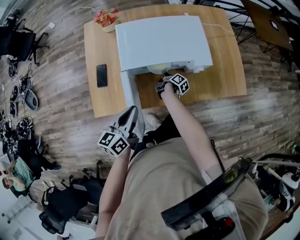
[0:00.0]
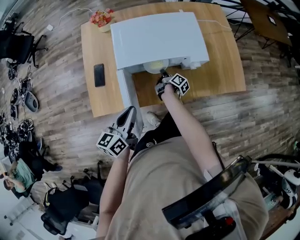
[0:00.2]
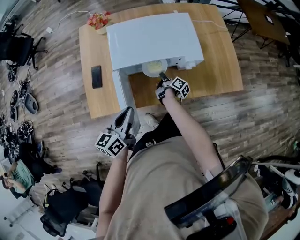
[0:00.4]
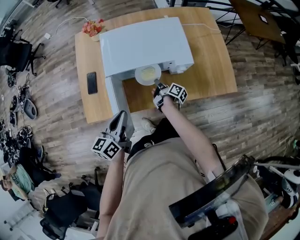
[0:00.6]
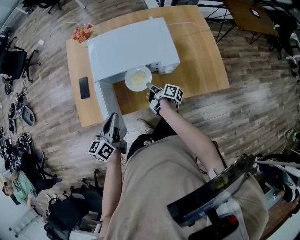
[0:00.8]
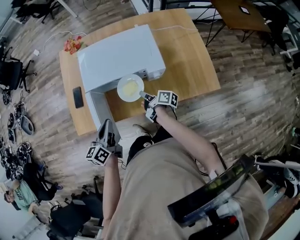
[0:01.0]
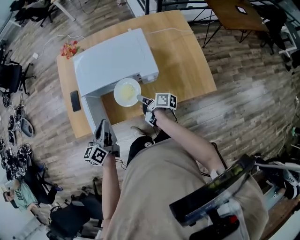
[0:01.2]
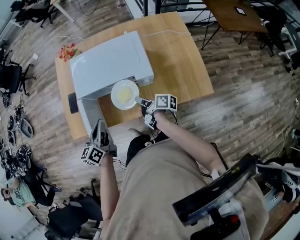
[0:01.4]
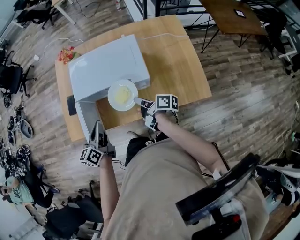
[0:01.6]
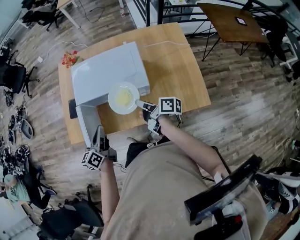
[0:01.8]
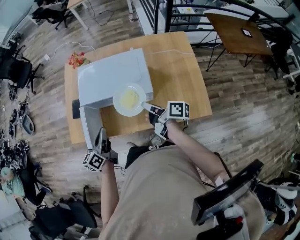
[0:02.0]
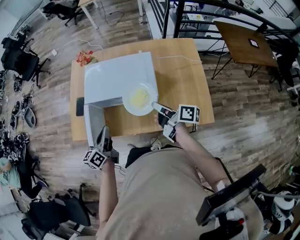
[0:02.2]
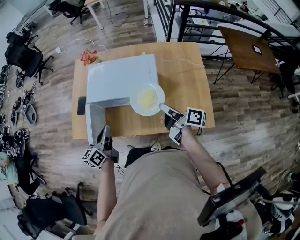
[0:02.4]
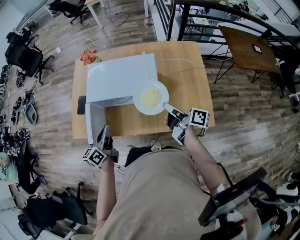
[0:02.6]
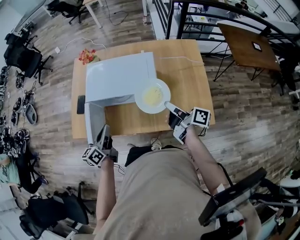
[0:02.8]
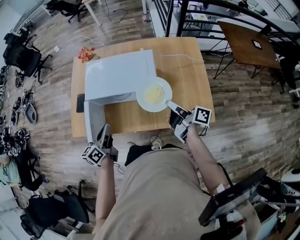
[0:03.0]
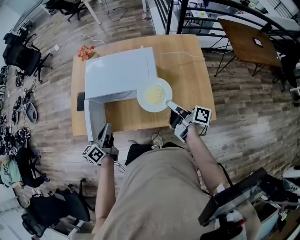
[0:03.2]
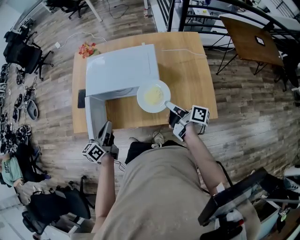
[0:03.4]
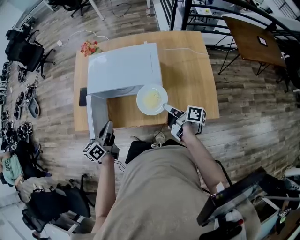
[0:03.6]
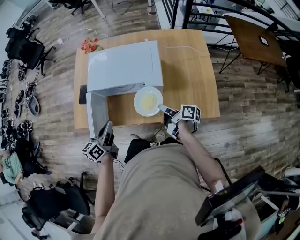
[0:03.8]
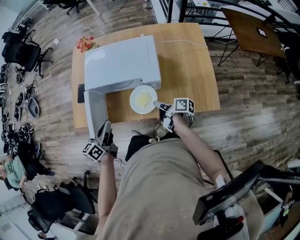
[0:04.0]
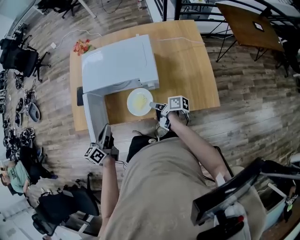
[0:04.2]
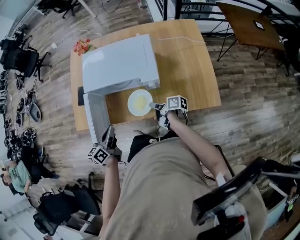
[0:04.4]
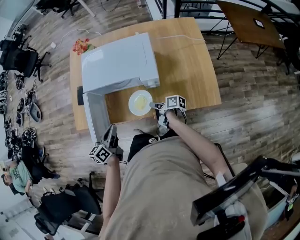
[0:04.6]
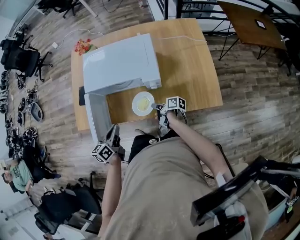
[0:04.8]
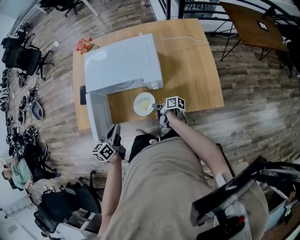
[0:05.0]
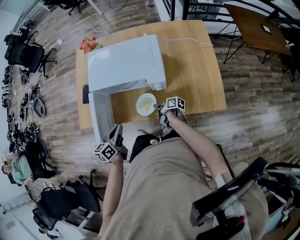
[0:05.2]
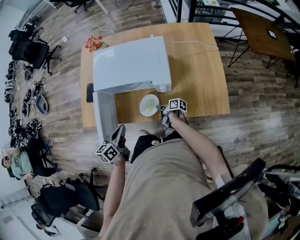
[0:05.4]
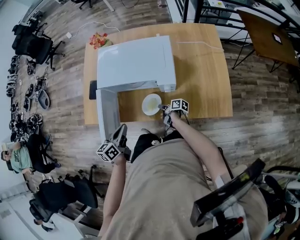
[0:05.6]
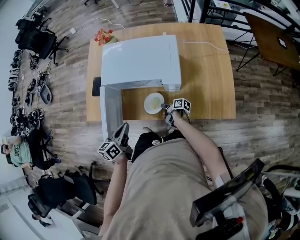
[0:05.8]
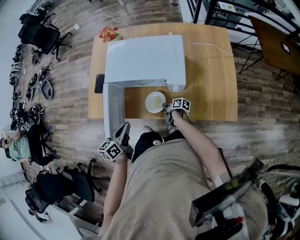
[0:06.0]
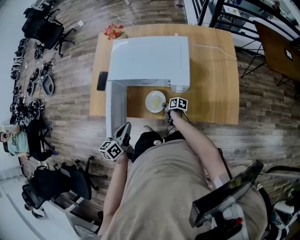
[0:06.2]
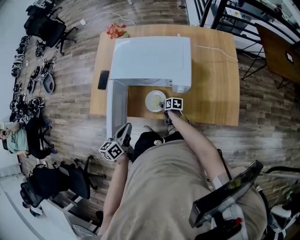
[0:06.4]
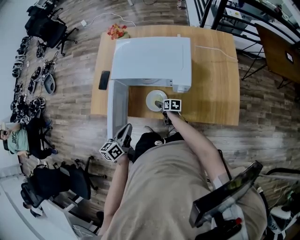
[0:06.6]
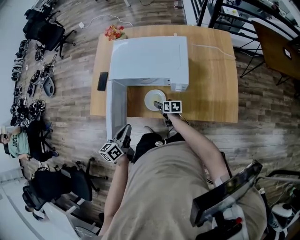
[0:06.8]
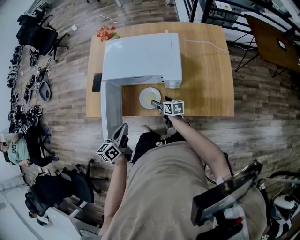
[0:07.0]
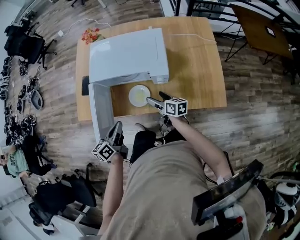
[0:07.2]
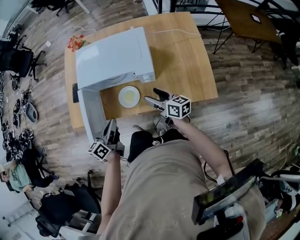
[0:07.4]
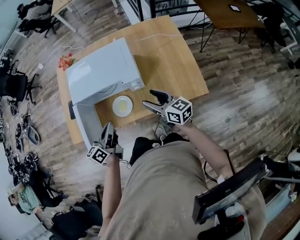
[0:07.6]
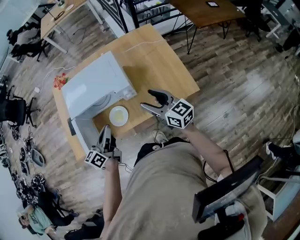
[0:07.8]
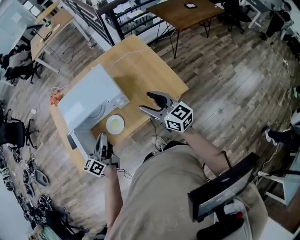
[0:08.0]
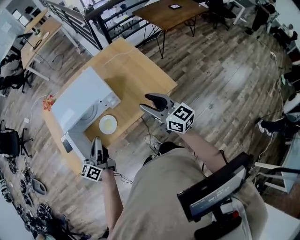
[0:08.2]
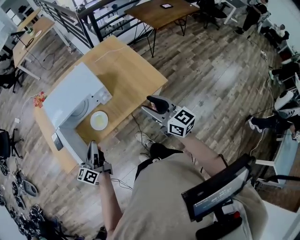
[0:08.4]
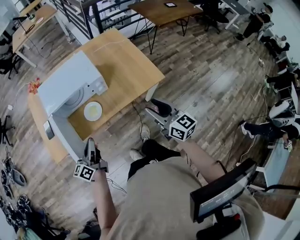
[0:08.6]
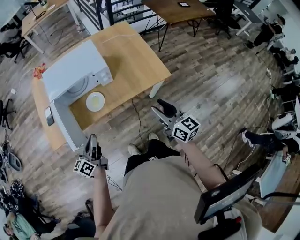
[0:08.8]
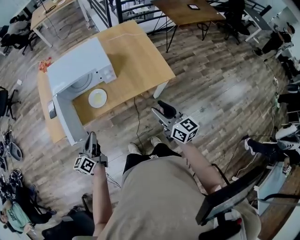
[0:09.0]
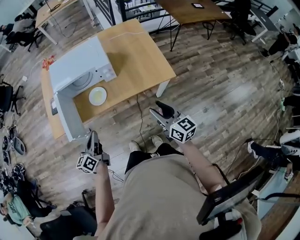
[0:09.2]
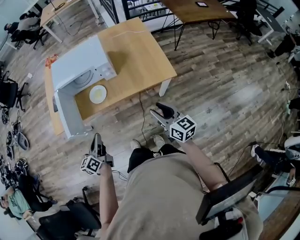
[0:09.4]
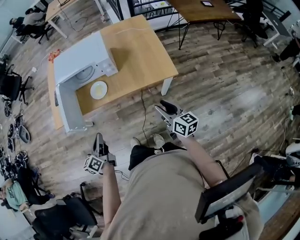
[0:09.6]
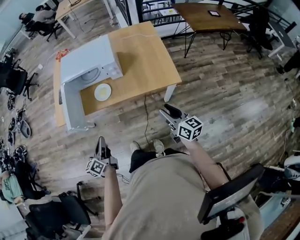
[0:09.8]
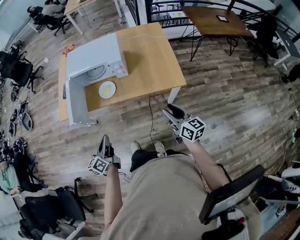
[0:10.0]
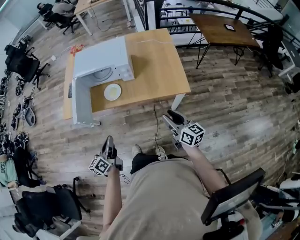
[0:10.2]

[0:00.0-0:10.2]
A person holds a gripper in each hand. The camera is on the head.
0:00.0 to 0:01.4: The left gripper shifts about 10 cm to the right. The right gripper shifts approximately 25 cm upward, to the right and backward, and turns by some 40 degrees.
0:01.4 to 0:03.0: The right gripper goes approximately 20 cm to the right and upward.
0:03.0 to 0:04.4: The left gripper shifts approximately 5 cm downward; the right gripper moves downward and to the left, about 20 cm, and swivels roughly 20 degrees.
0:04.4 to 0:05.8: The right gripper is displaced downward by about 15 cm.
0:05.8 to 0:07.2: The right gripper goes roughly 15 cm upward, swivels some 40 degrees, and opens up.
0:07.2 to 0:08.8: The left gripper moves approximately 15 cm, and changes its angle by about 20 degrees; the right gripper shifts by about 40 cm, rotates approximately 40 degrees, and closes up.
0:08.8 to 0:10.2: The right gripper is displaced to the right and downward by roughly 10 cm. Meanwhile the left gripper travels backward and to the right by roughly 15 cm, and changes its angle by roughly 20 degrees.

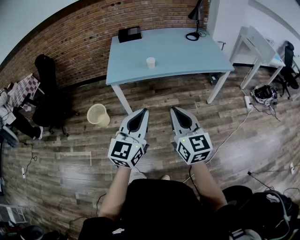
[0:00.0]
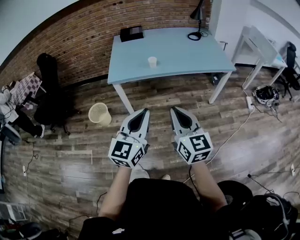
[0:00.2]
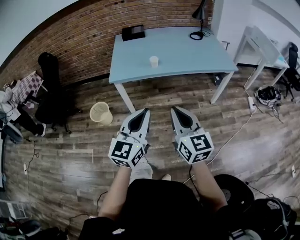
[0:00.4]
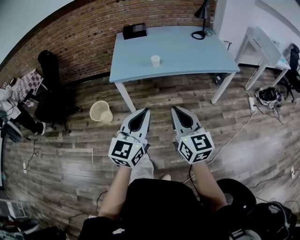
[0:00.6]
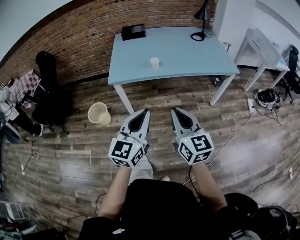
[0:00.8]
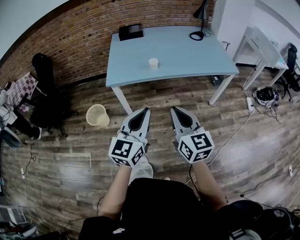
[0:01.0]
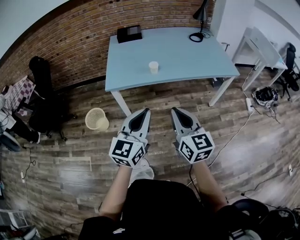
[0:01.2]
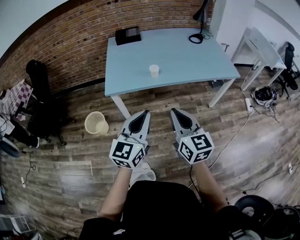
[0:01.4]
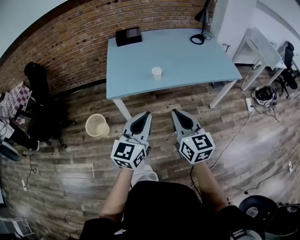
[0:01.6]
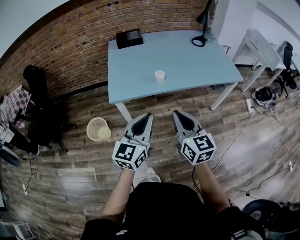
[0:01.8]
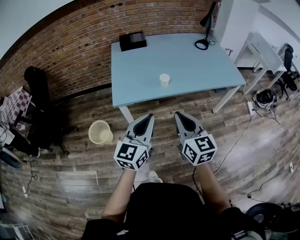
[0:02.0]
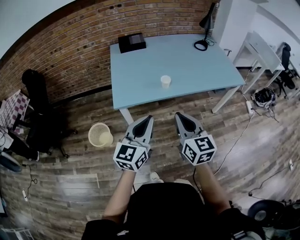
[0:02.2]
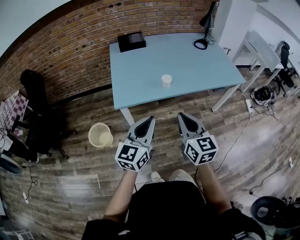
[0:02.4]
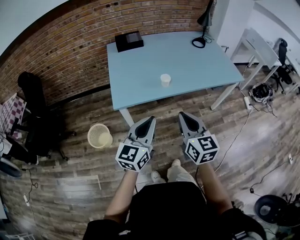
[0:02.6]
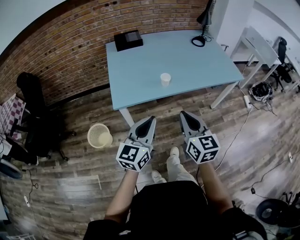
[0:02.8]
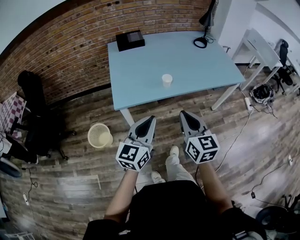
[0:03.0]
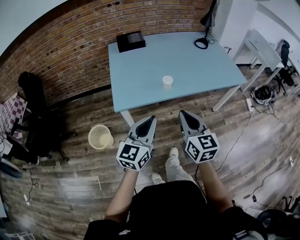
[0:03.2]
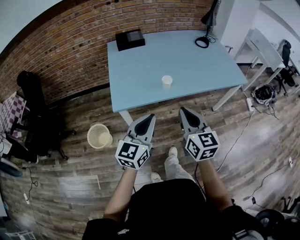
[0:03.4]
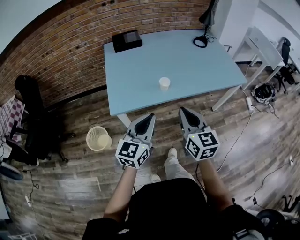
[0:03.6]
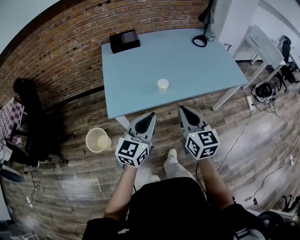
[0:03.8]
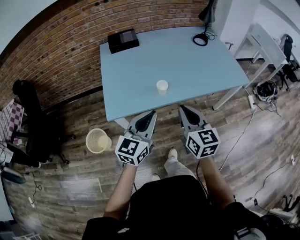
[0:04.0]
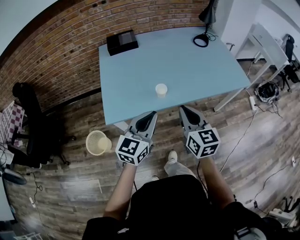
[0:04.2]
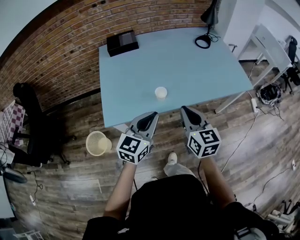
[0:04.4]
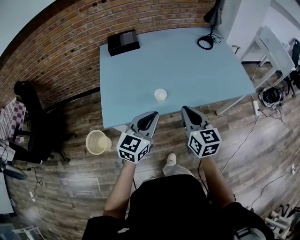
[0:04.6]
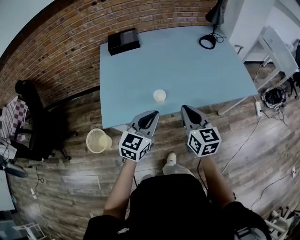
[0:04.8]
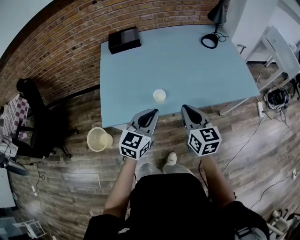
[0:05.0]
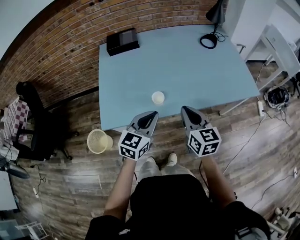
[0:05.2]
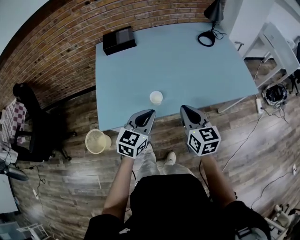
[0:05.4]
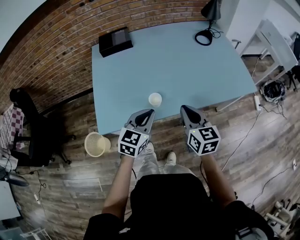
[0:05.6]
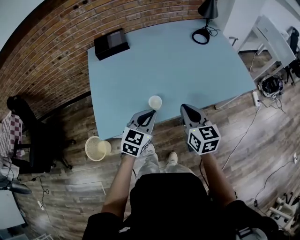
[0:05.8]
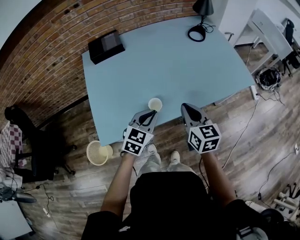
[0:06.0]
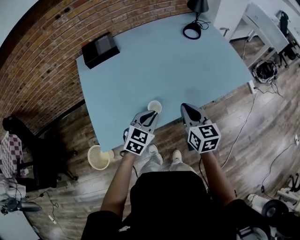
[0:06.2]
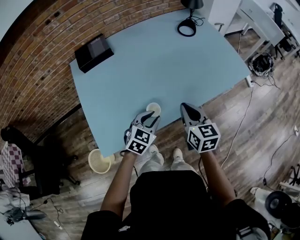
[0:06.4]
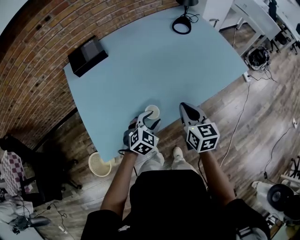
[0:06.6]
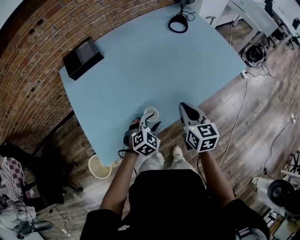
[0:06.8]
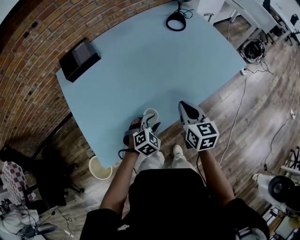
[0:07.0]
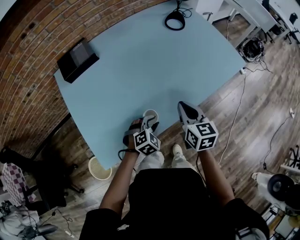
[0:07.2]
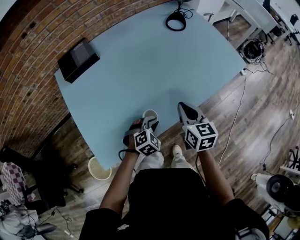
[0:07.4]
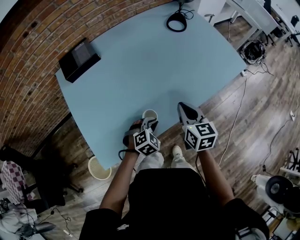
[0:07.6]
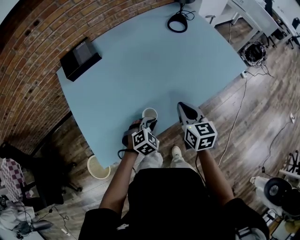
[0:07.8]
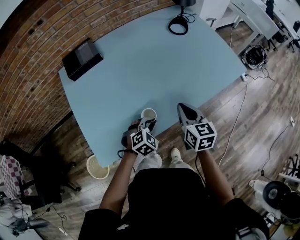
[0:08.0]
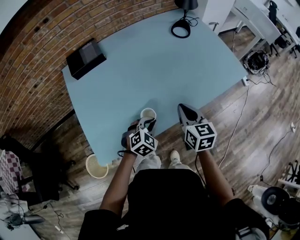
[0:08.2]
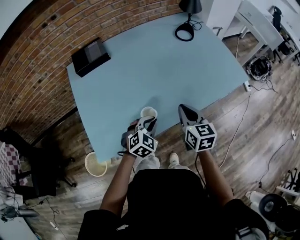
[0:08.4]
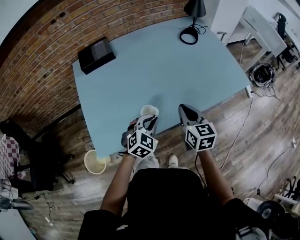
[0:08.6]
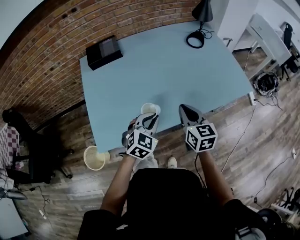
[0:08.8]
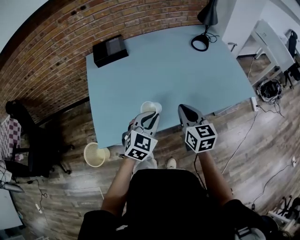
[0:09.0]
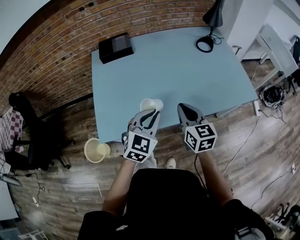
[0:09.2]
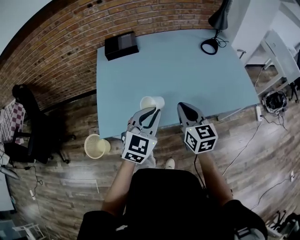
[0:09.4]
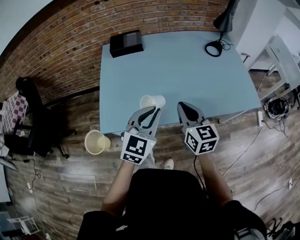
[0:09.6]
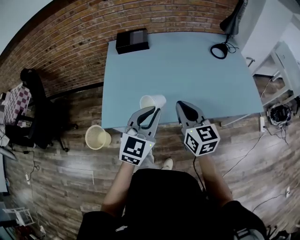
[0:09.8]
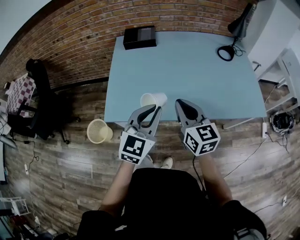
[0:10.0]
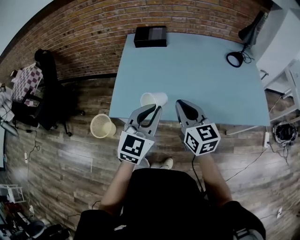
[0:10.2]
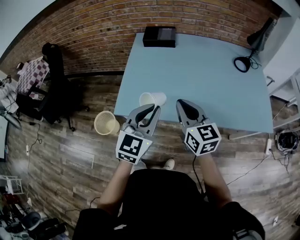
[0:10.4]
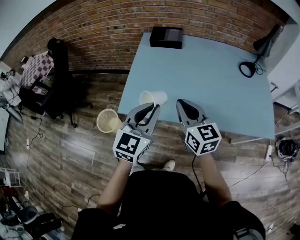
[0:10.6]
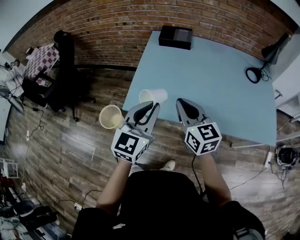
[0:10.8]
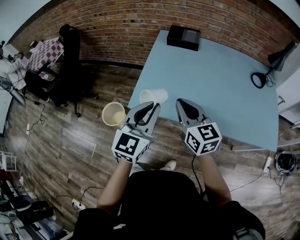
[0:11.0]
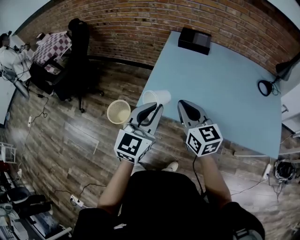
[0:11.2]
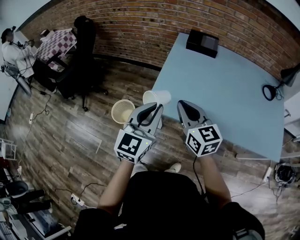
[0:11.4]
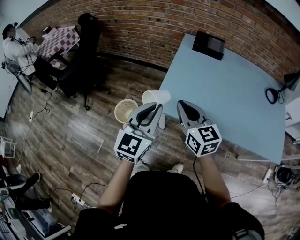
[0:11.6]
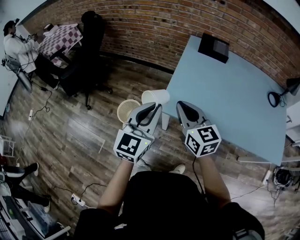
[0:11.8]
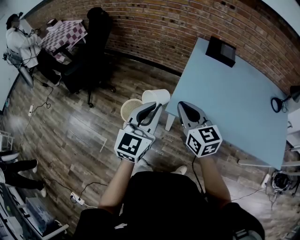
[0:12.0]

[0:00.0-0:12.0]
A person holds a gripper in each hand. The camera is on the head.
0:00.0 to 0:01.6: The grippers both shift forward and to the left by about 20 cm.
0:01.6 to 0:03.0: The two grippers go some 10 cm to the left and forward.
0:03.0 to 0:04.4: The grippers both shift forward by some 20 cm.
0:04.4 to 0:06.0: Both grippers travel together forward and downward, about 15 cm. The left gripper turns by approximately 20 degrees.
0:06.0 to 0:07.6: The left gripper is displaced downward by roughly 15 cm, rotates roughly 40 degrees, and opens, then closes once more, while the right gripper moves forward and downward, about 10 cm.
0:07.6 to 0:09.0: The left gripper is displaced upward by some 20 cm, and rotates about 40 degrees, while the right gripper shifts approximately 5 cm upward.
0:09.0 to 0:10.4: The right gripper ends up some 15 cm from where it was, and rotates some 30 degrees. Meanwhile the left gripper moves about 15 cm, and rotates some 30 degrees.
0:10.4 to 0:12.0: Both grippers move to the left, approximately 30 cm.

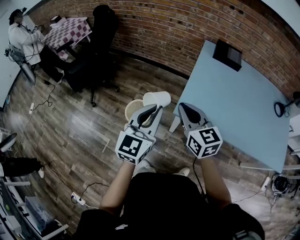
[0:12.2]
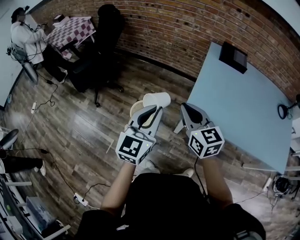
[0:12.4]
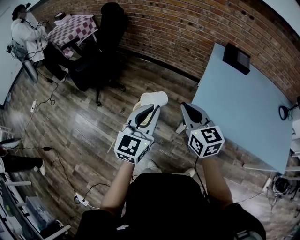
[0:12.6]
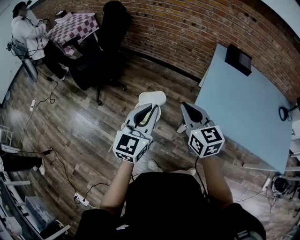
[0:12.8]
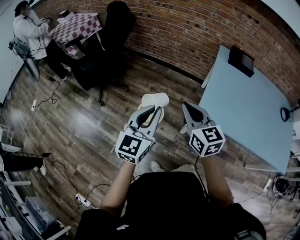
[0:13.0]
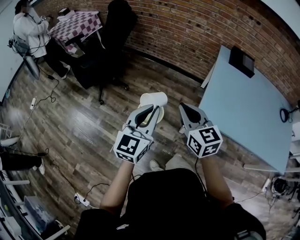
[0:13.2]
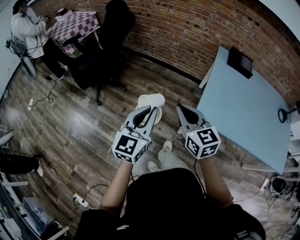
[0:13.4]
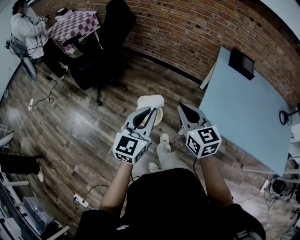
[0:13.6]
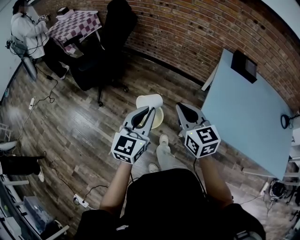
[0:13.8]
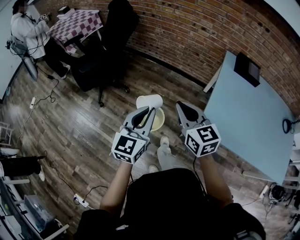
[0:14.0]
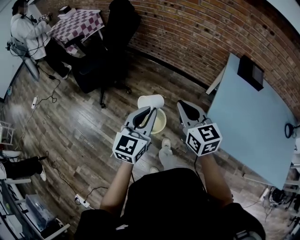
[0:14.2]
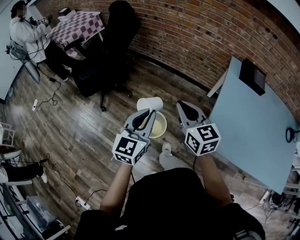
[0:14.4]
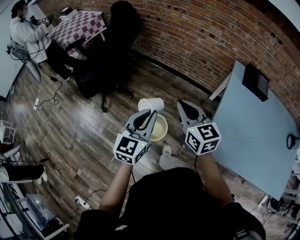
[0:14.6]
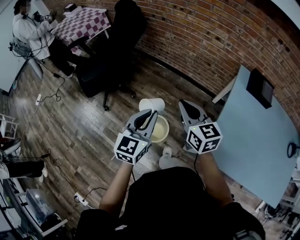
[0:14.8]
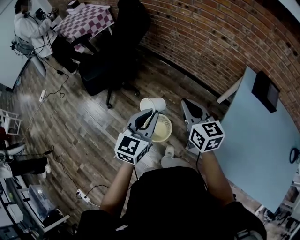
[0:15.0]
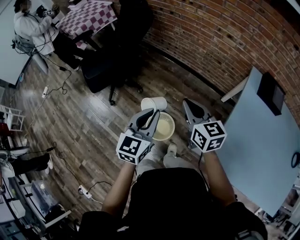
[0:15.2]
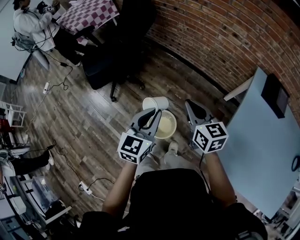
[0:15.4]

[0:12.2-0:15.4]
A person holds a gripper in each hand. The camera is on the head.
0:12.2 to 0:13.8: Both grippers travel together to the left, approximately 15 cm.
0:13.8 to 0:15.4: The two grippers go some 25 cm forward.
